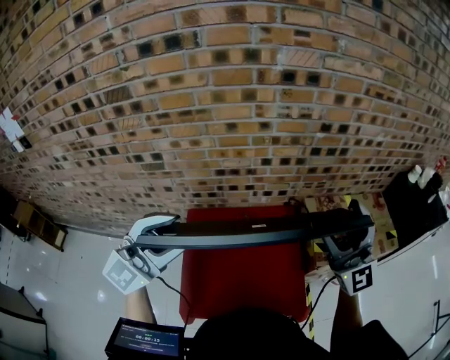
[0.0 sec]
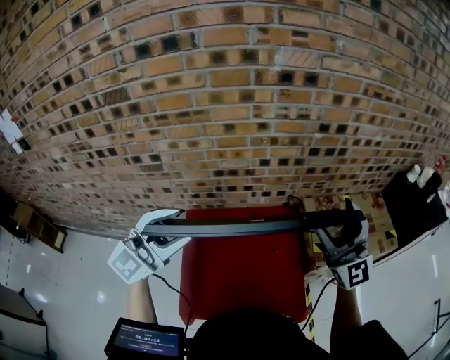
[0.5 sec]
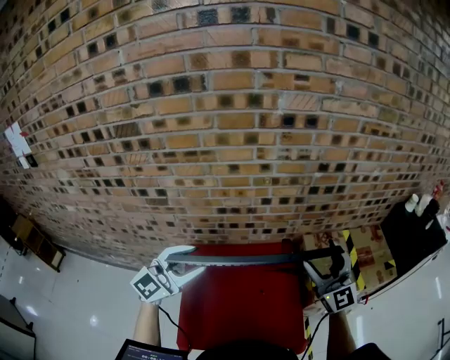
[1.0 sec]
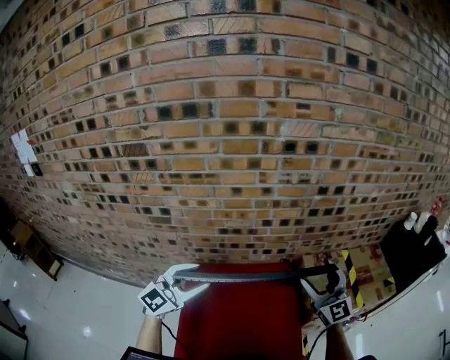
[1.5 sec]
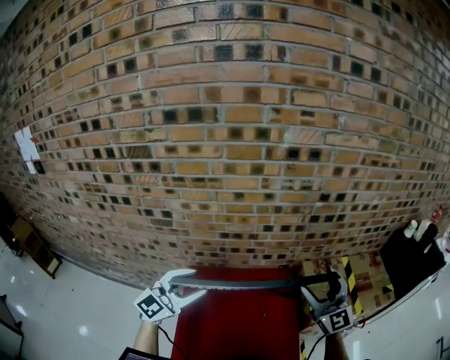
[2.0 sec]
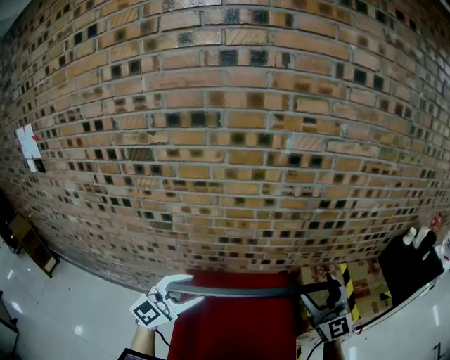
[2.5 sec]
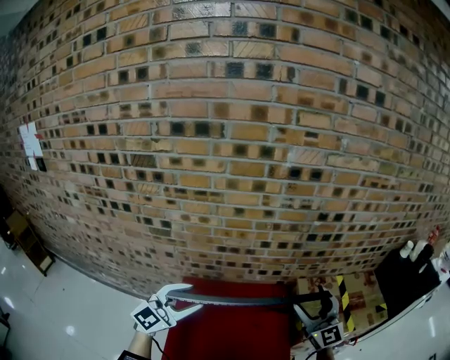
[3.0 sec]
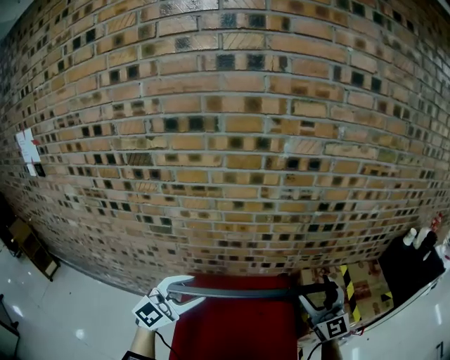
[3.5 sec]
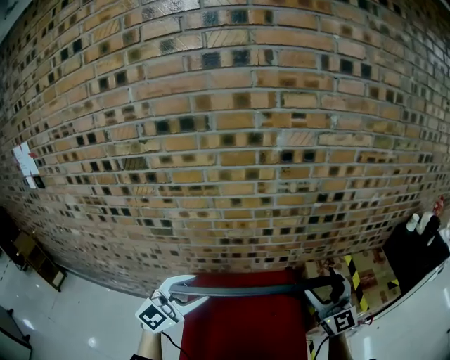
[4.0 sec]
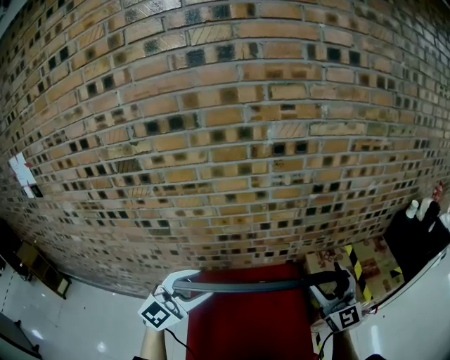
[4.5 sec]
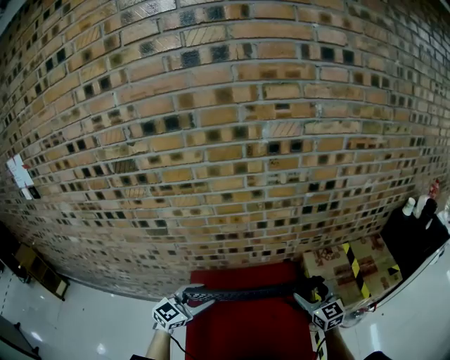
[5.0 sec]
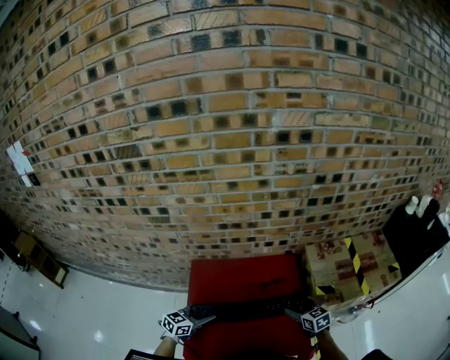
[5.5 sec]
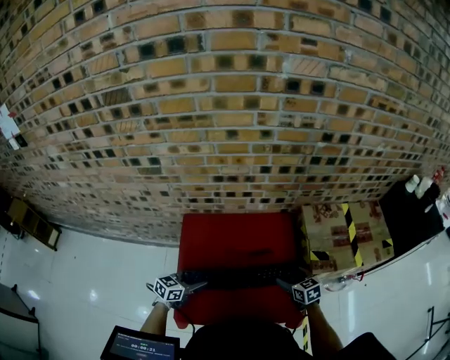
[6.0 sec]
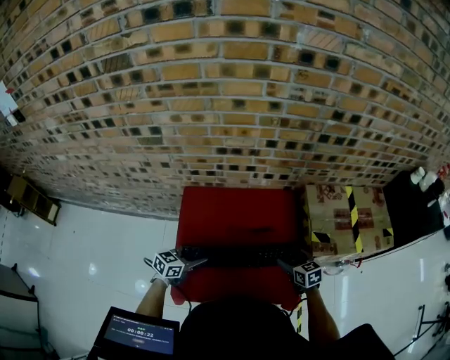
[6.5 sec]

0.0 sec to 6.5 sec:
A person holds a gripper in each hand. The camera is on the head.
0.0 sec to 2.0 sec: The right gripper travels downward by about 10 cm. The left gripper is displaced downward and forward by approximately 10 cm.
2.0 sec to 4.5 sec: The grippers make only small movements.
4.5 sec to 6.5 sec: Both grippers move downward, some 35 cm. The left gripper twists about 60 degrees counterclockwise, seen from behind; the right gripper angles its fingers downward, by roughly 60 degrees.

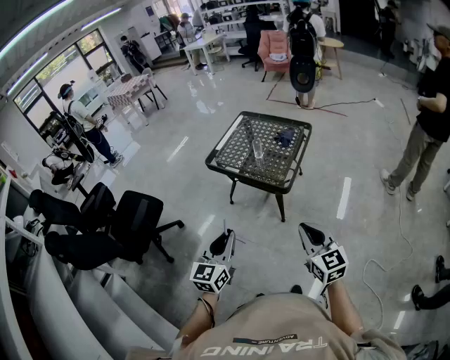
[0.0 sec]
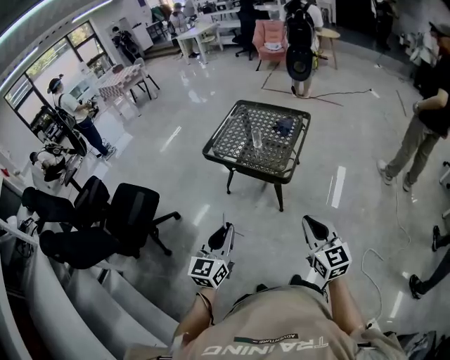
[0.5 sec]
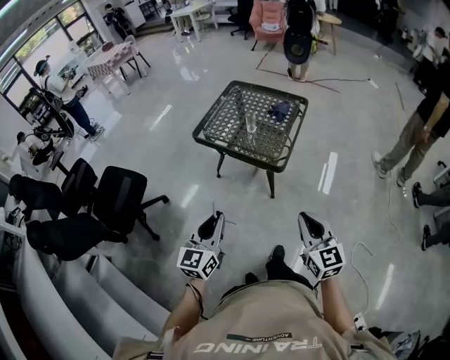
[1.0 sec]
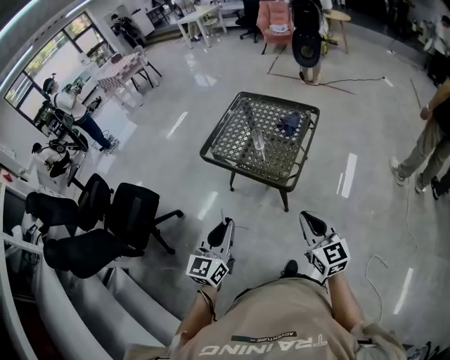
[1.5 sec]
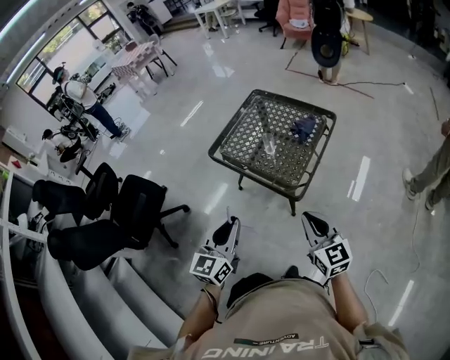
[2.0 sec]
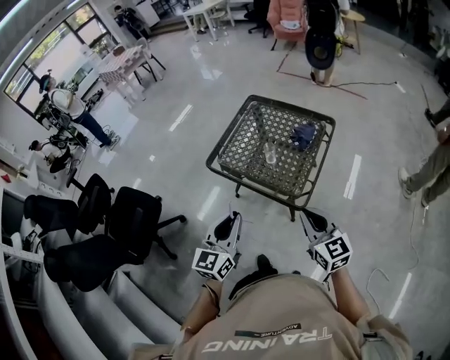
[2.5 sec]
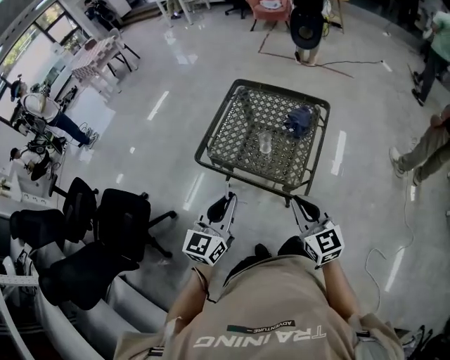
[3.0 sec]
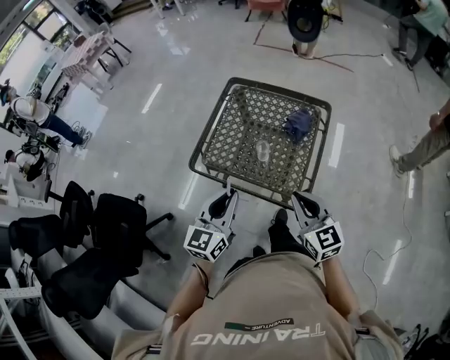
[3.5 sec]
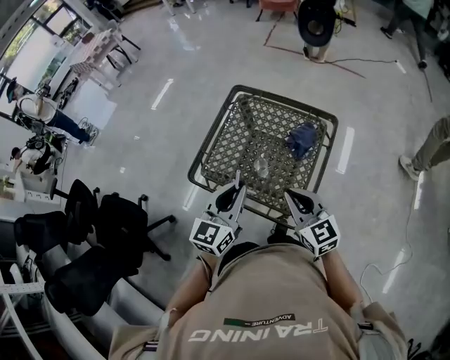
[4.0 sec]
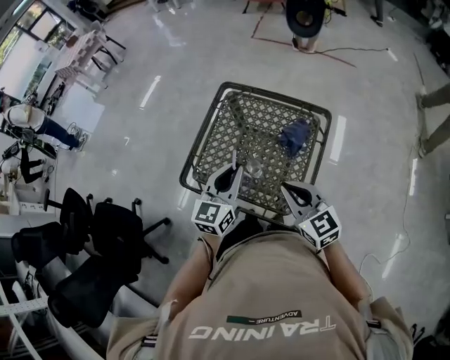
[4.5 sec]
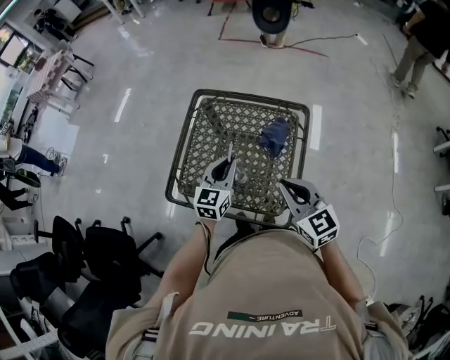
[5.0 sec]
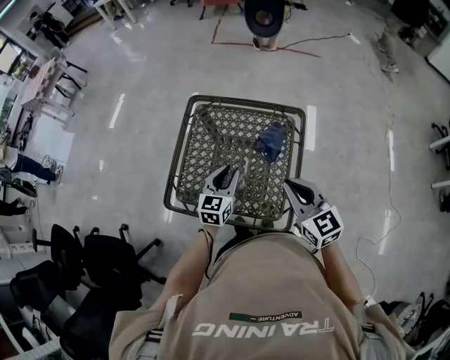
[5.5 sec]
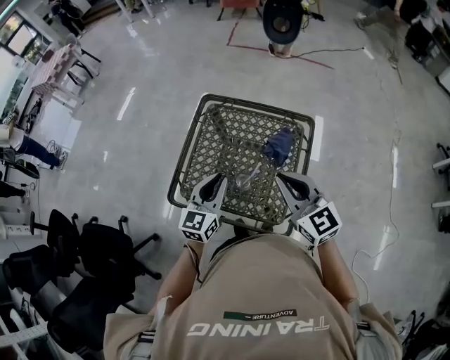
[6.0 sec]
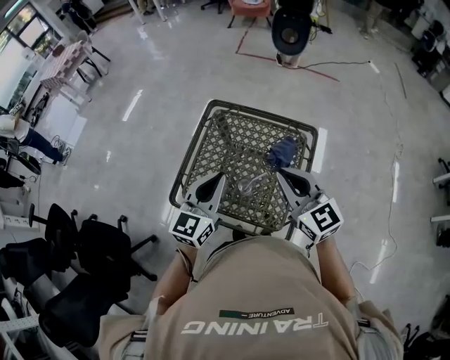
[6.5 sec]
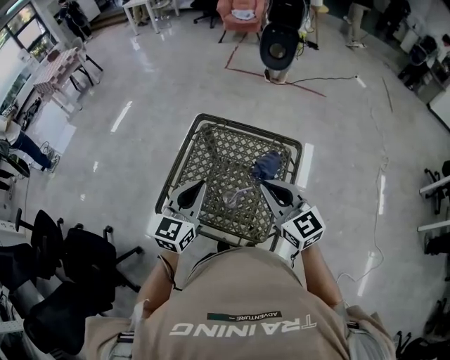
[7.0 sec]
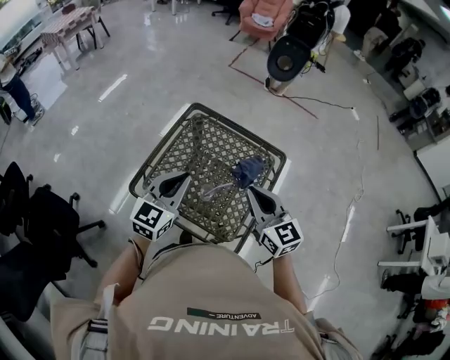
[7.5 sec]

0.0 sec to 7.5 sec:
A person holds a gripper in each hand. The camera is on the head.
0.0 sec to 2.0 sec: The grippers both shift forward by roughly 20 cm.
2.0 sec to 4.0 sec: Both grippers travel together forward, some 30 cm.
4.0 sec to 5.5 sec: The right gripper is displaced forward by approximately 5 cm, while the left gripper shifts about 20 cm forward and downward.
5.5 sec to 7.5 sec: The left gripper is displaced upward and to the left by about 15 cm, and closes.

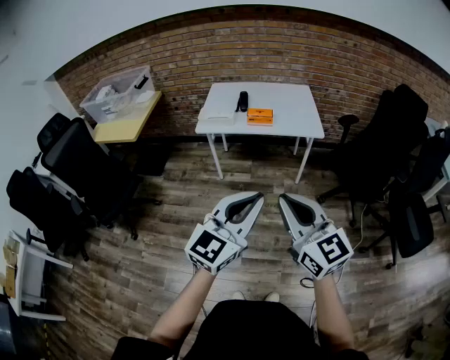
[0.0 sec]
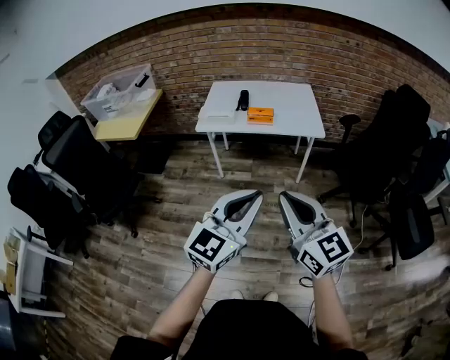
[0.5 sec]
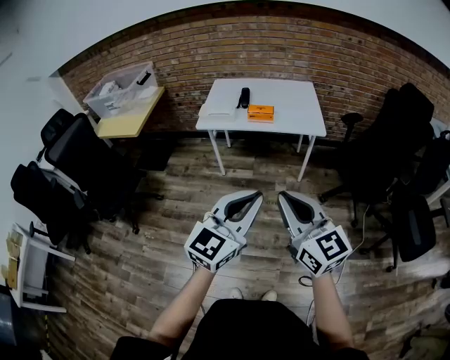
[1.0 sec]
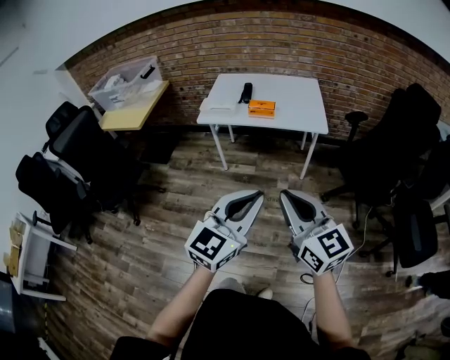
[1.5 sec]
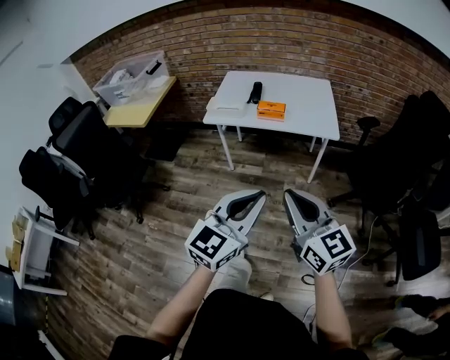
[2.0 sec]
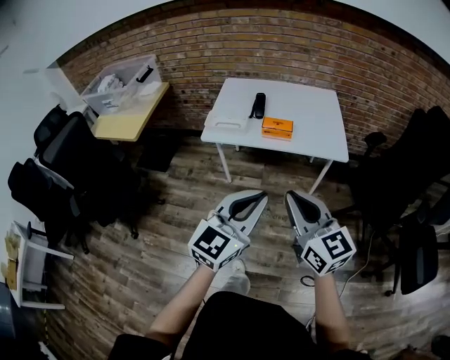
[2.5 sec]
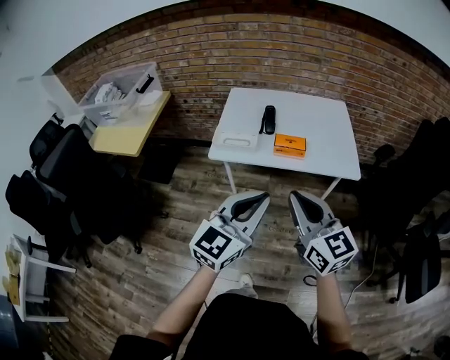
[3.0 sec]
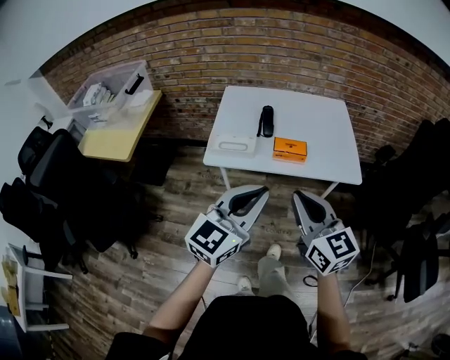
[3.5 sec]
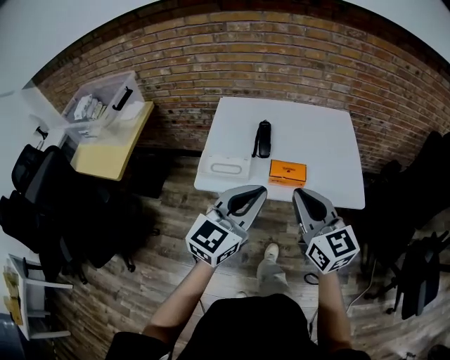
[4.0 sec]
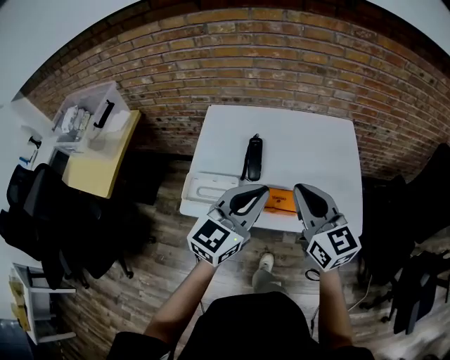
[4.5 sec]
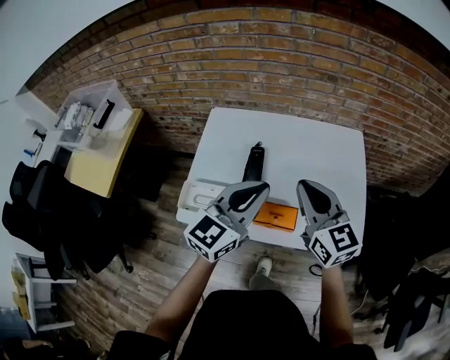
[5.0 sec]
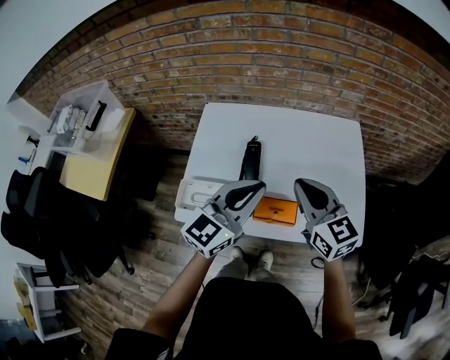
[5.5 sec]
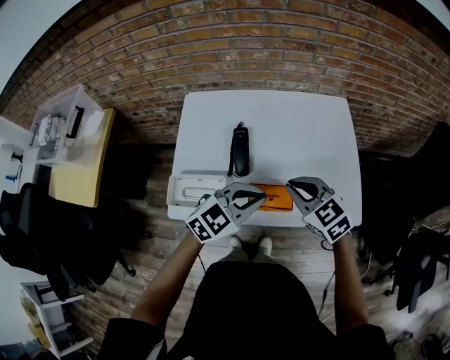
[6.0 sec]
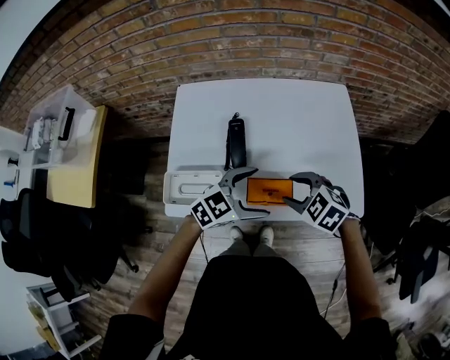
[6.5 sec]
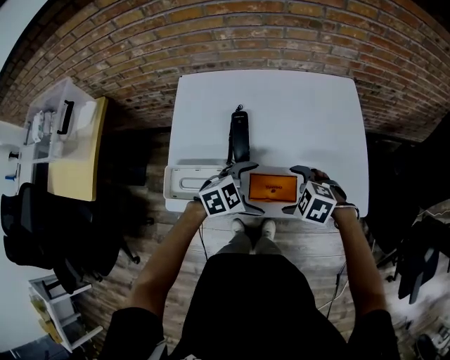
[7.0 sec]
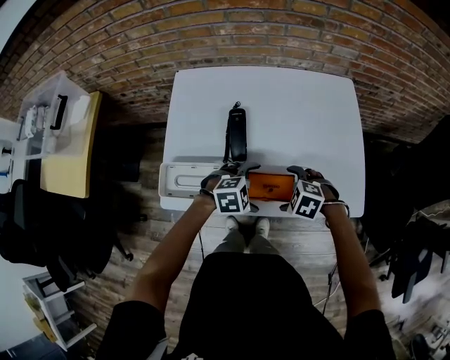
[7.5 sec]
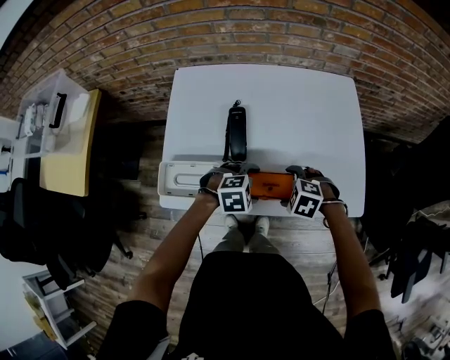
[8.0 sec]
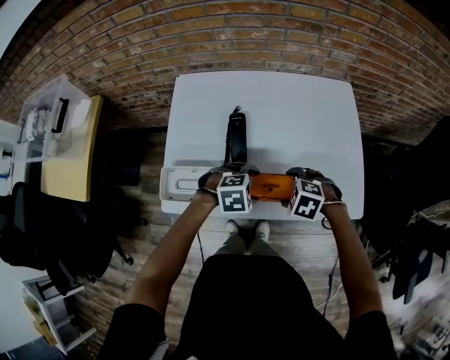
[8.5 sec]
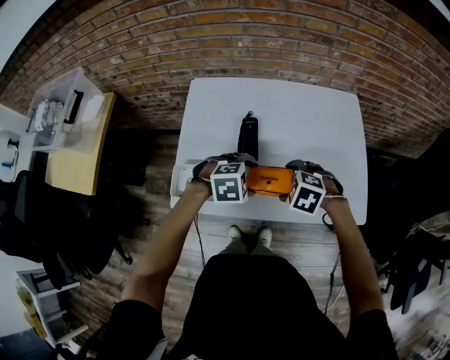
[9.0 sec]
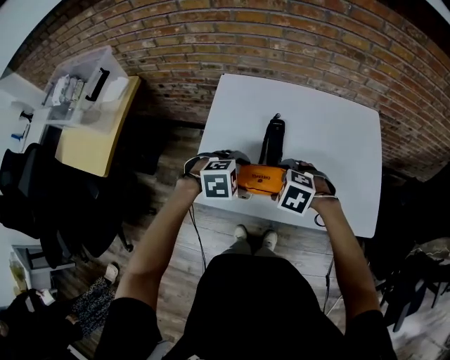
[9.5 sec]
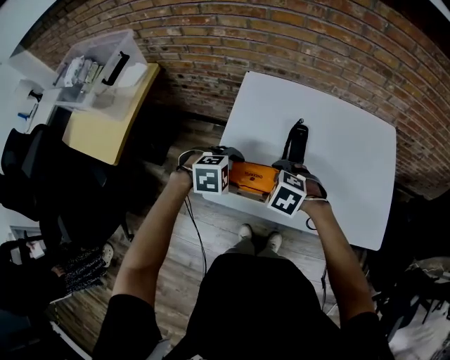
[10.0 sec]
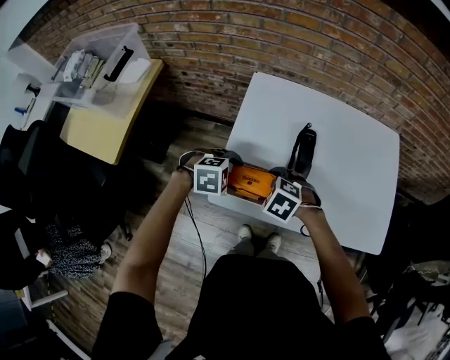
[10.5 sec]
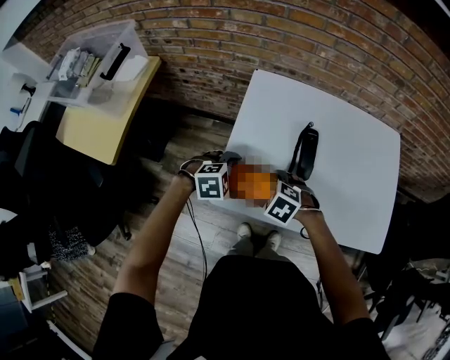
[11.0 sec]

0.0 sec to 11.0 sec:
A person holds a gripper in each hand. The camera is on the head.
0.0 sec to 2.0 sec: The left gripper goes approximately 5 cm forward. The right gripper is displaced forward and to the right by some 10 cm.
2.0 sec to 3.5 sec: The grippers both shift forward and to the left by approximately 30 cm.
3.5 sec to 5.5 sec: Both grippers move forward, approximately 35 cm.
5.5 sec to 7.5 sec: Both grippers move downward, some 30 cm. The right gripper angles its fingers downward, by about 60 degrees, and opens. Meanwhile the left gripper tilts its fingers some 50 degrees downward, and opens its fingers.
7.5 sec to 9.0 sec: The grippers both shift upward by about 5 cm. The left gripper closes its fingers.
9.0 sec to 11.0 sec: The left gripper changes place by about 25 cm. Meanwhile the right gripper moves about 25 cm.

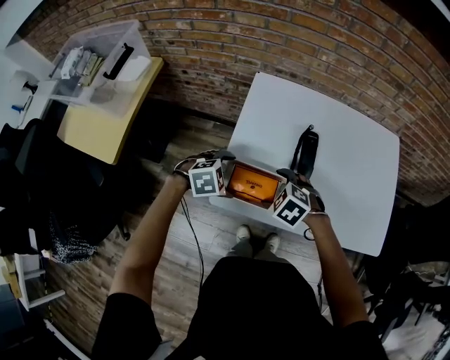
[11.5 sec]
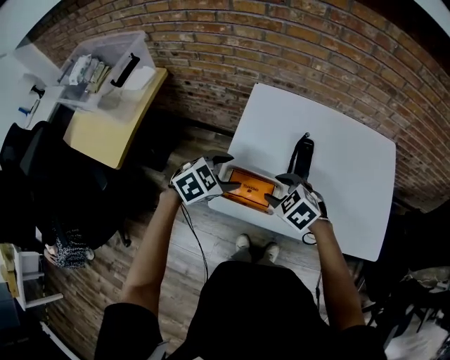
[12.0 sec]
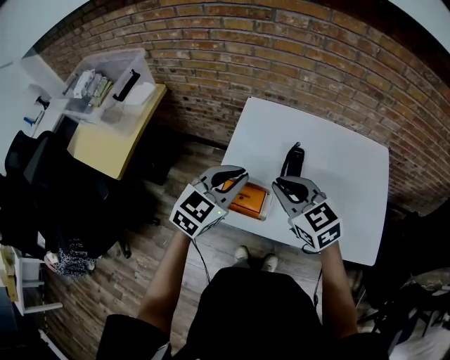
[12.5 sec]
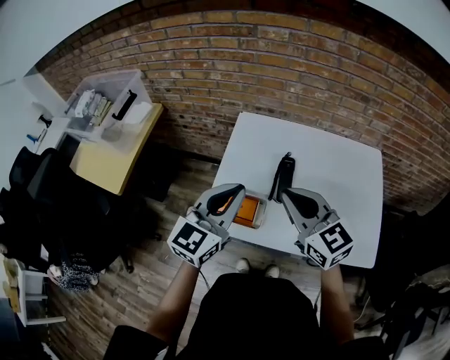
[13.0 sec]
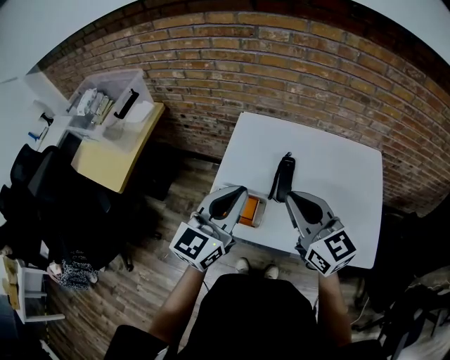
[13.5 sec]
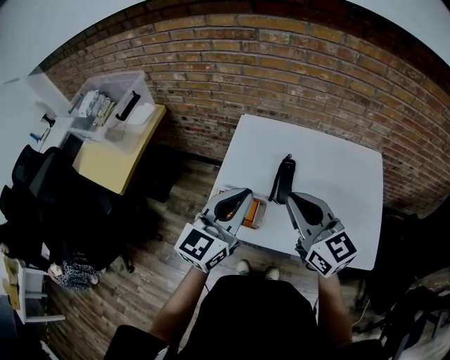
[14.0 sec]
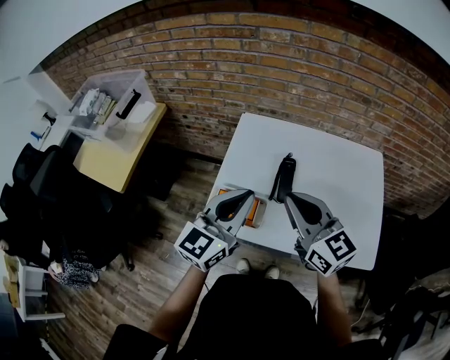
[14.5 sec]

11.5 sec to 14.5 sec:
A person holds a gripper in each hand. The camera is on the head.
11.5 sec to 13.0 sec: Both grippers move upward, some 25 cm. The right gripper points its fingers approximately 50 degrees further upward, and closes its fingers; the left gripper tilts its fingers approximately 60 degrees upward, and closes up.
13.0 sec to 14.5 sec: The grippers stay close to where they were, moving slightly.
